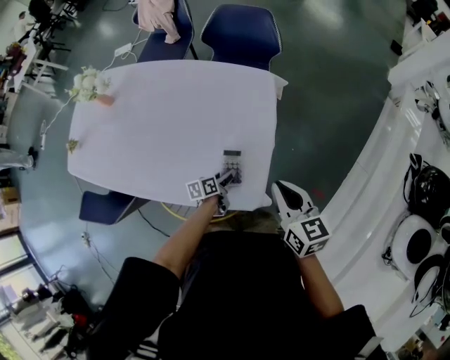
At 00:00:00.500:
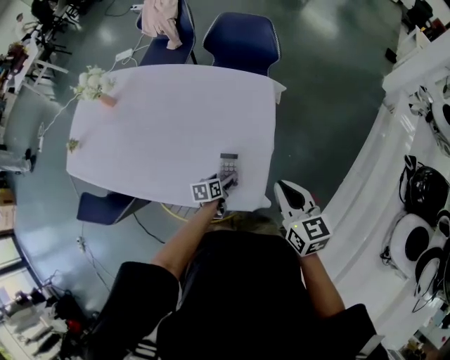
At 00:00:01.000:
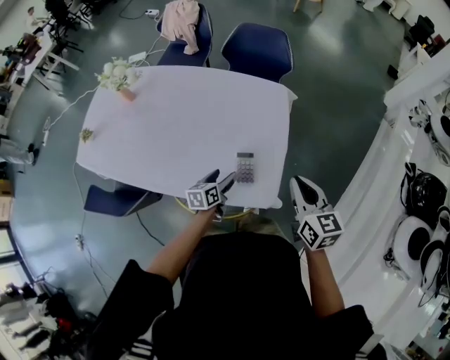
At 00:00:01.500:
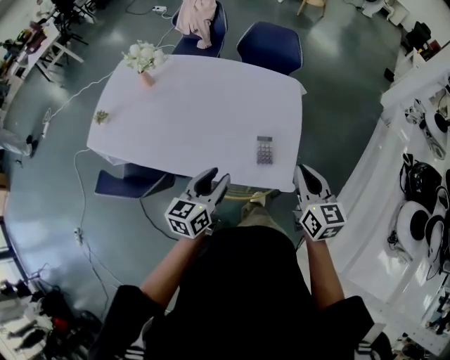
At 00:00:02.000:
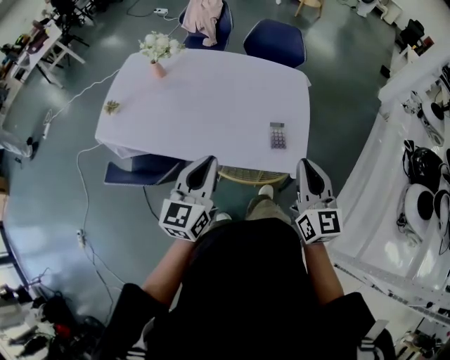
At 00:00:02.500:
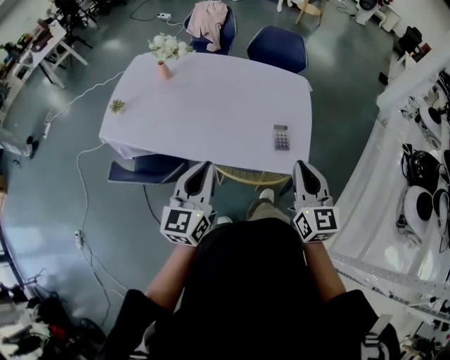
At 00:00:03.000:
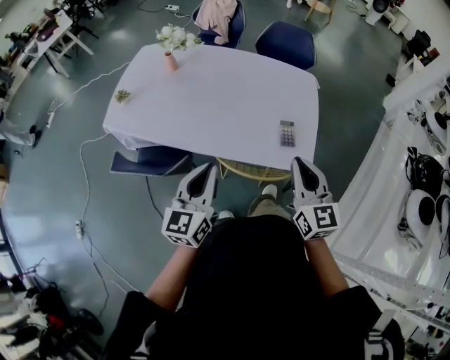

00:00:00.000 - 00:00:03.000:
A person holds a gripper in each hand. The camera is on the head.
00:00:00.000 - 00:00:01.500: The right gripper shifts approximately 15 cm to the left, backward and upward. The left gripper shifts about 40 cm upward, to the left and backward, rotates roughly 40 degrees, and opens, then closes again.
00:00:01.500 - 00:00:03.000: The left gripper is displaced to the left, backward and upward by approximately 20 cm, and closes. The right gripper travels to the left and backward by roughly 15 cm.

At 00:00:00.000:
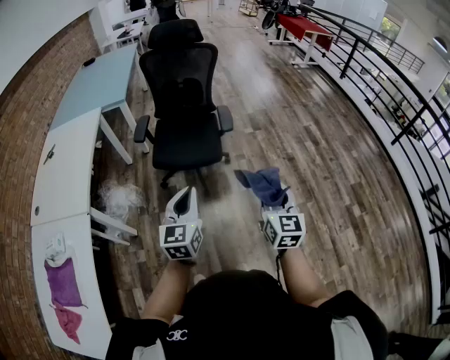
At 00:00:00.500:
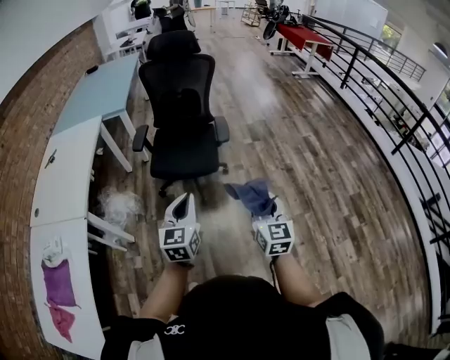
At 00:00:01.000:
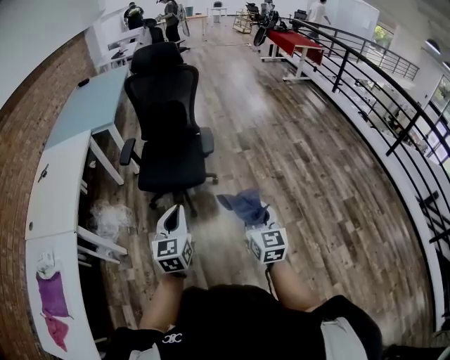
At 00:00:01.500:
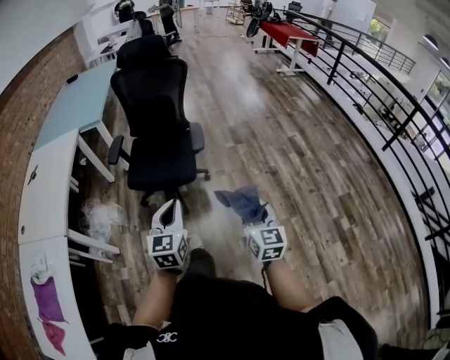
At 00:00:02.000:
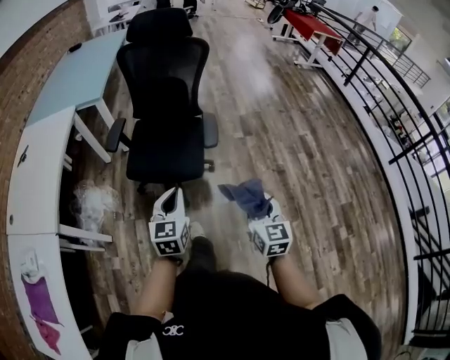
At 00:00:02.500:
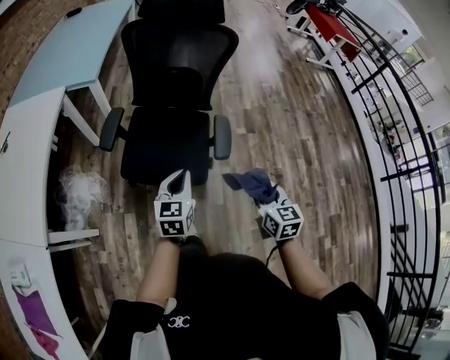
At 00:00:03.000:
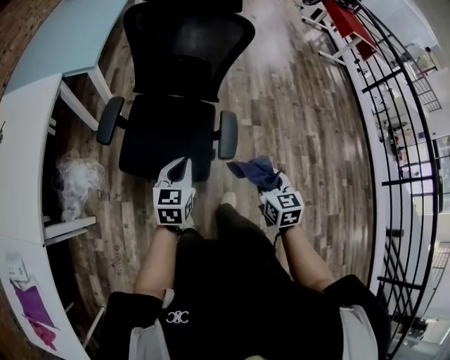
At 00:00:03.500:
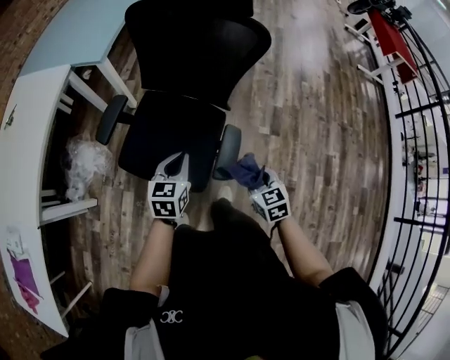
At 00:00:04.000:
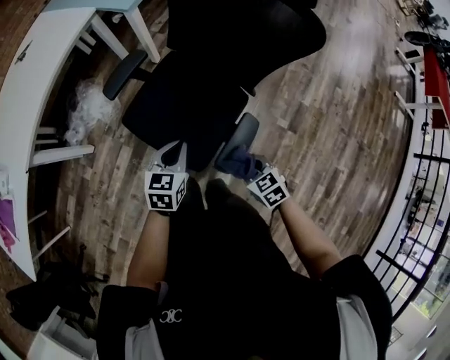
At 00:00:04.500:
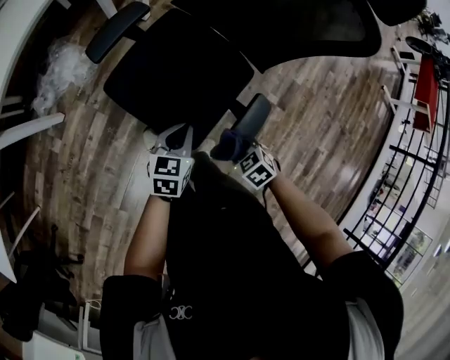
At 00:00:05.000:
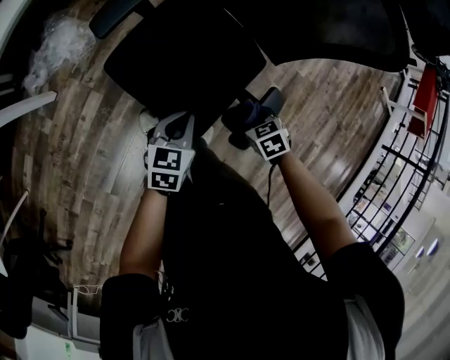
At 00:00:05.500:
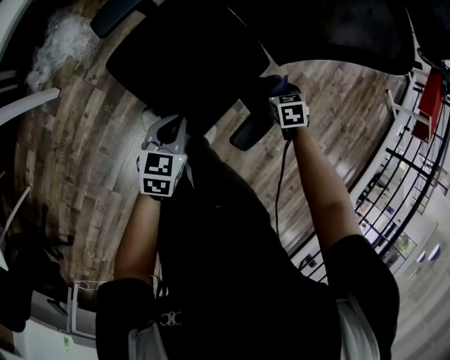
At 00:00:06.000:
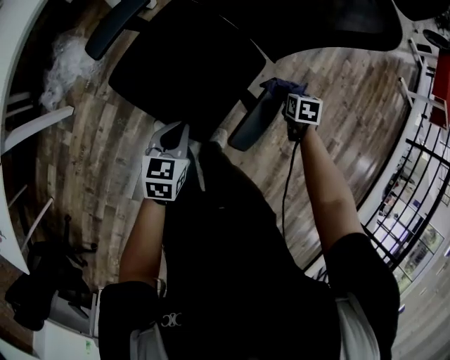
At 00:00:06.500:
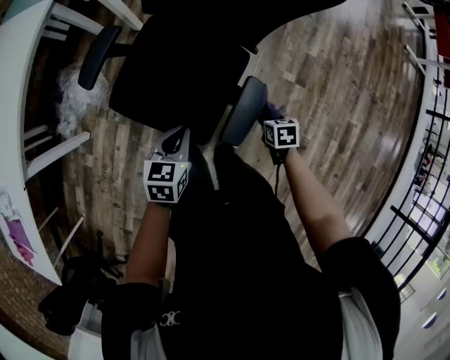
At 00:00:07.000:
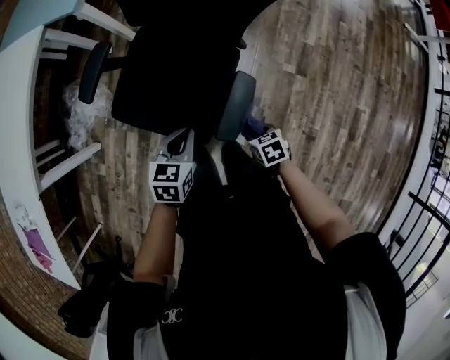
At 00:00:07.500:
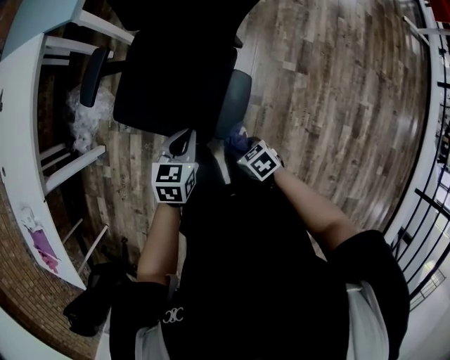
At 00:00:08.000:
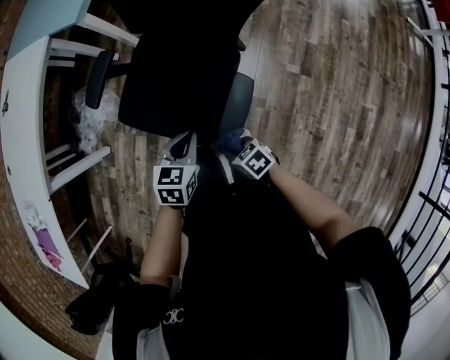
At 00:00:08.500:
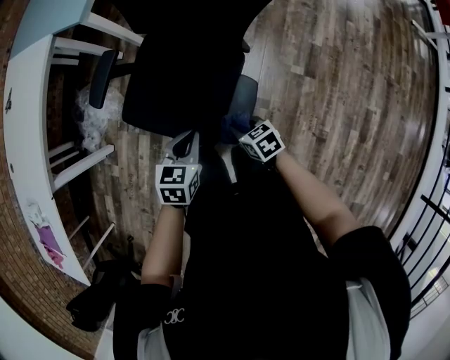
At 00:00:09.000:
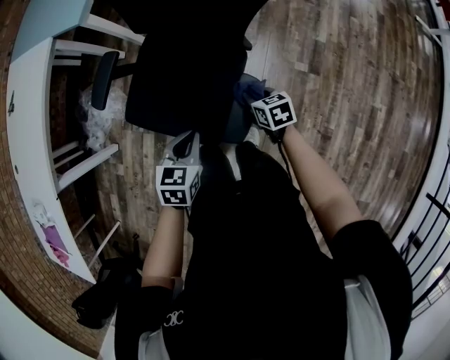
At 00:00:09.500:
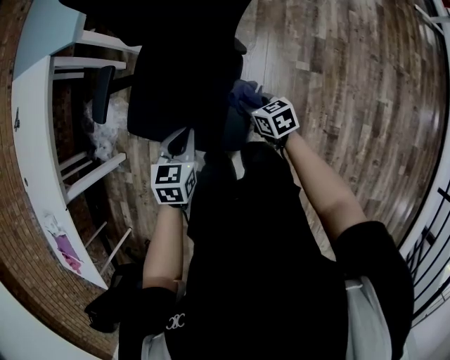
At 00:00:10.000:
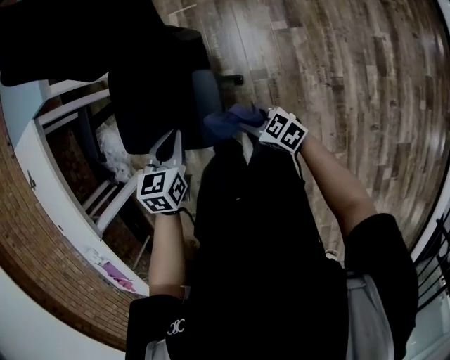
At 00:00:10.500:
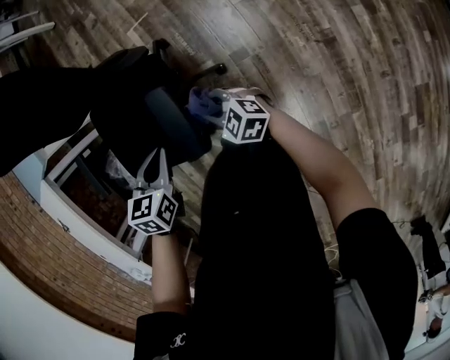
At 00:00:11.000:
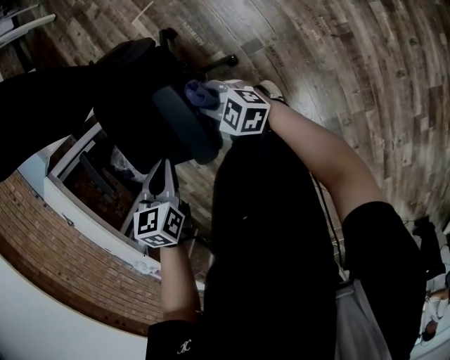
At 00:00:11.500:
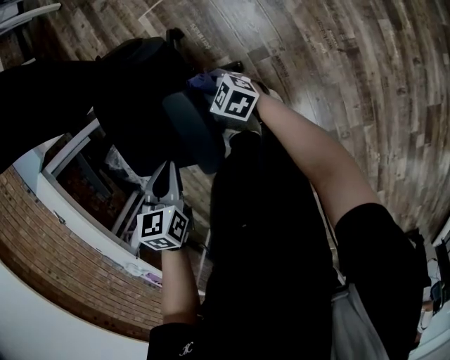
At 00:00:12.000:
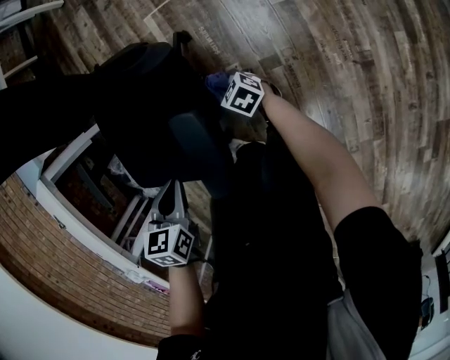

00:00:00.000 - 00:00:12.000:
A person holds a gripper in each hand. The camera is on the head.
00:00:00.000 - 00:00:02.000: The grippers both shift forward and downward by some 20 cm.
00:00:02.000 - 00:00:04.000: The left gripper changes place by roughly 40 cm, and rotates about 30 degrees. The right gripper changes place by about 50 cm, and angles its fingers downward, by about 40 degrees.
00:00:04.000 - 00:00:06.000: The right gripper ends up roughly 25 cm from where it was, and rotates about 40 degrees, while the left gripper goes about 10 cm downward.
00:00:06.000 - 00:00:08.000: The right gripper ends up roughly 30 cm from where it was, and swivels roughly 40 degrees. Meanwhile the left gripper moves approximately 15 cm.
00:00:08.000 - 00:00:10.000: The left gripper goes approximately 5 cm to the right. The right gripper shifts approximately 10 cm to the right, goes forward and returns, roughly 15 cm each way, and turns by approximately 20 degrees.
00:00:10.000 - 00:00:12.000: The right gripper shifts roughly 30 cm downward and forward. The left gripper shifts roughly 10 cm downward.

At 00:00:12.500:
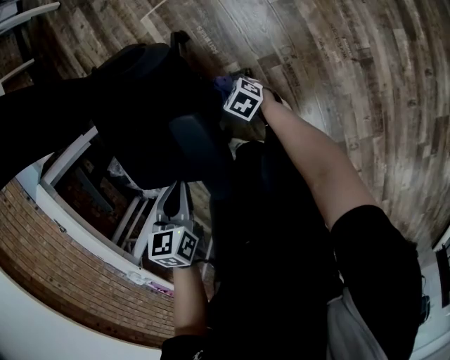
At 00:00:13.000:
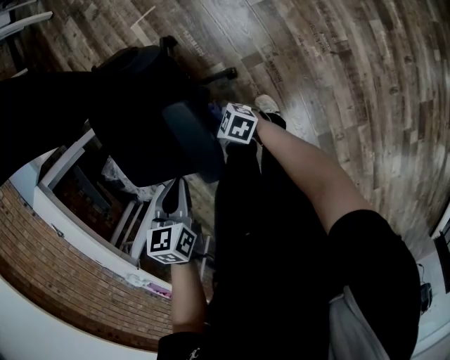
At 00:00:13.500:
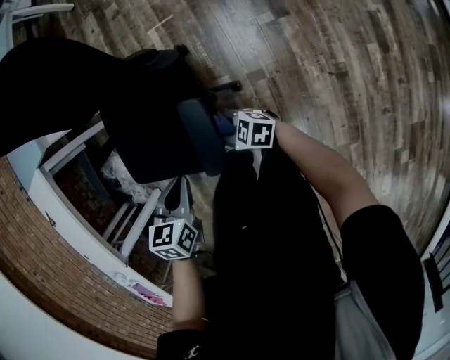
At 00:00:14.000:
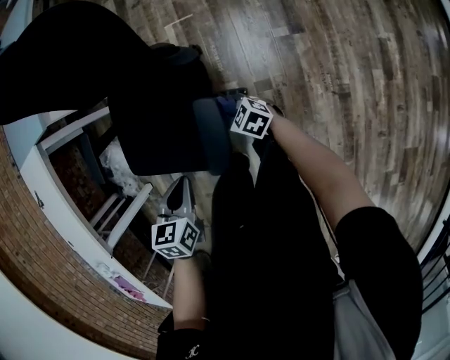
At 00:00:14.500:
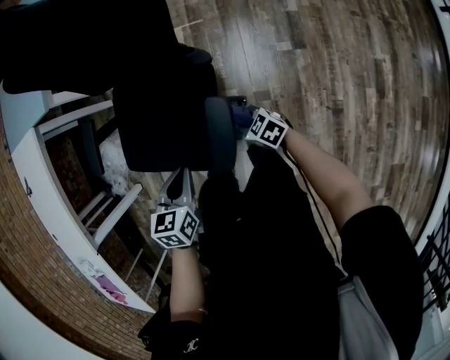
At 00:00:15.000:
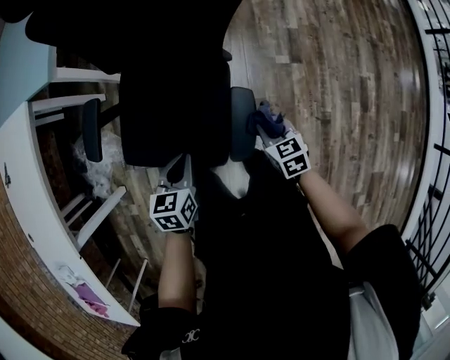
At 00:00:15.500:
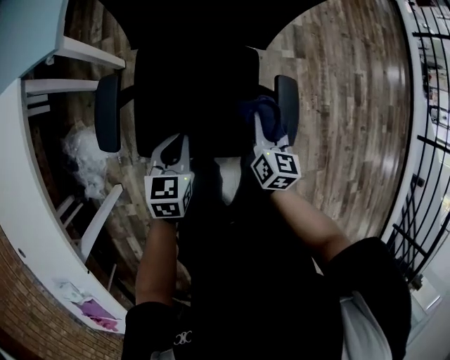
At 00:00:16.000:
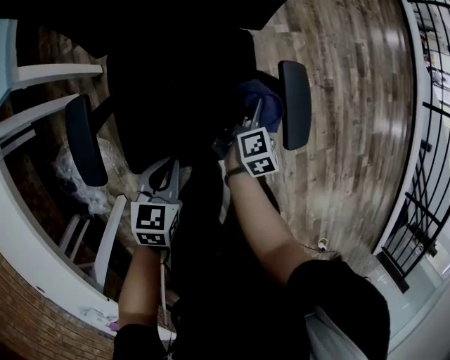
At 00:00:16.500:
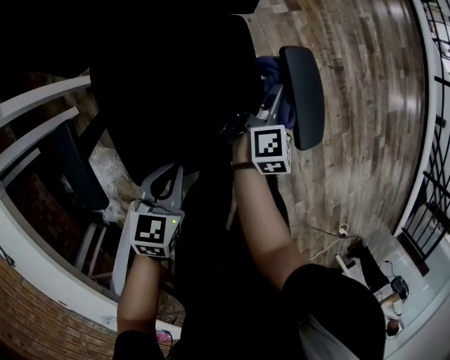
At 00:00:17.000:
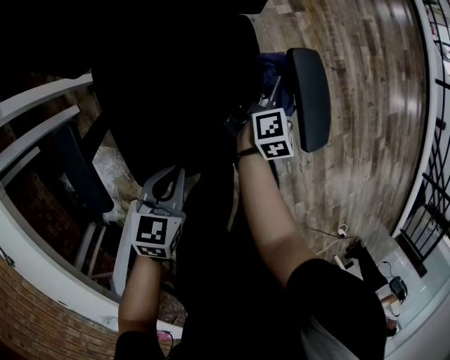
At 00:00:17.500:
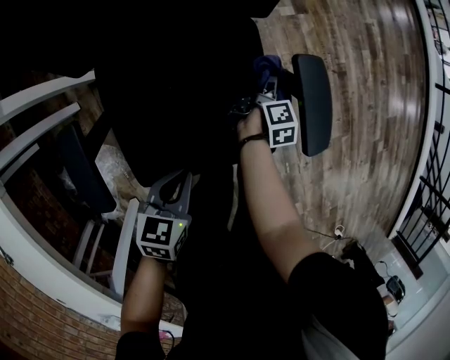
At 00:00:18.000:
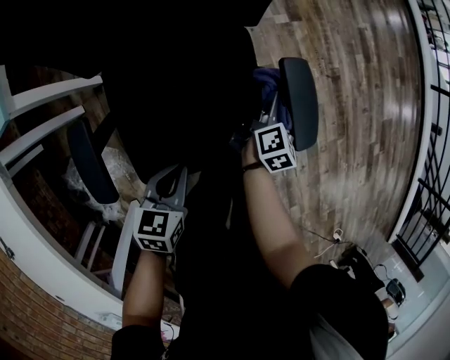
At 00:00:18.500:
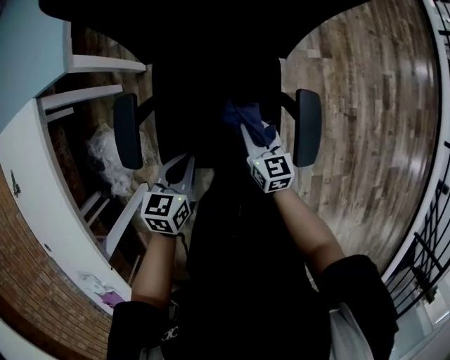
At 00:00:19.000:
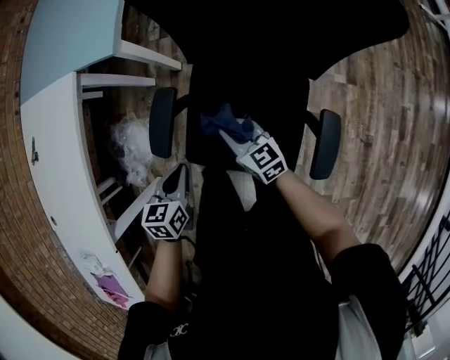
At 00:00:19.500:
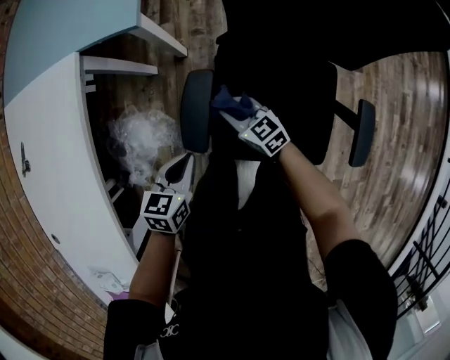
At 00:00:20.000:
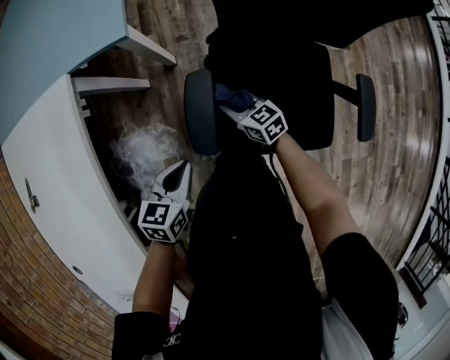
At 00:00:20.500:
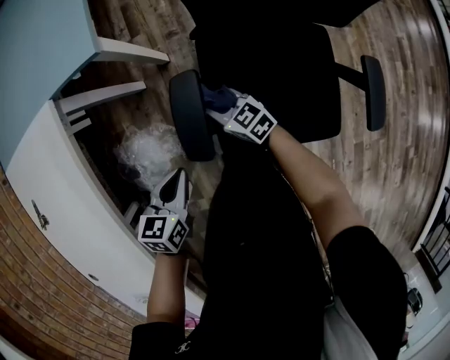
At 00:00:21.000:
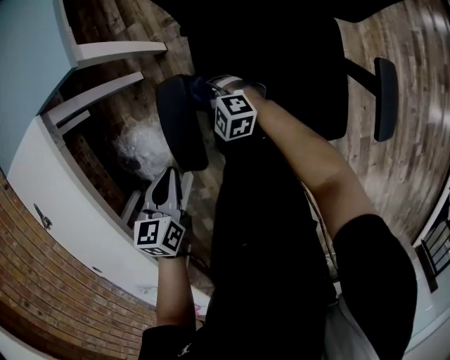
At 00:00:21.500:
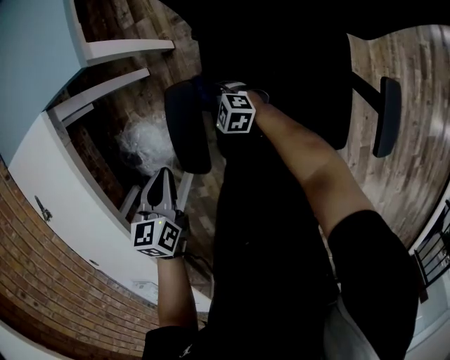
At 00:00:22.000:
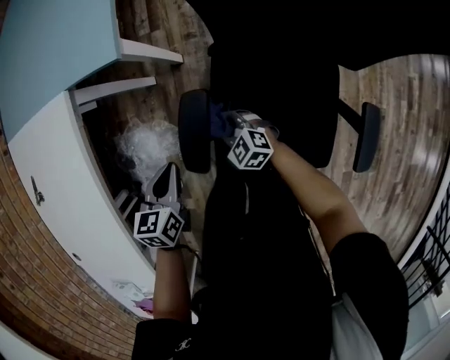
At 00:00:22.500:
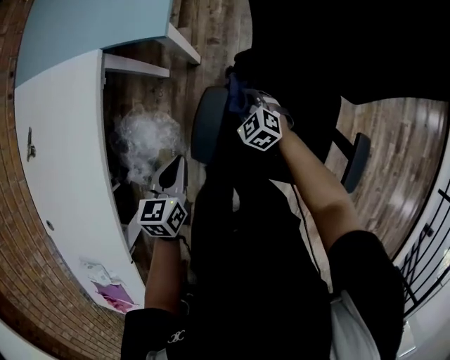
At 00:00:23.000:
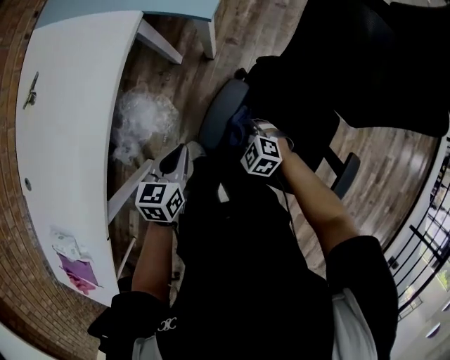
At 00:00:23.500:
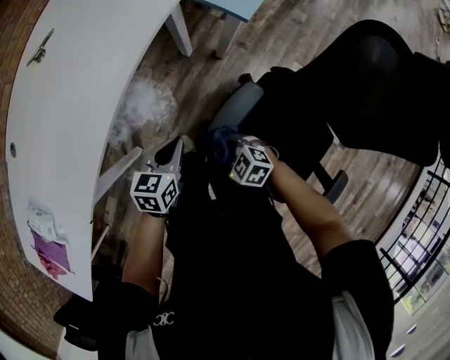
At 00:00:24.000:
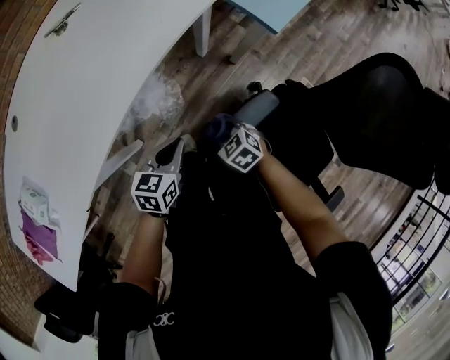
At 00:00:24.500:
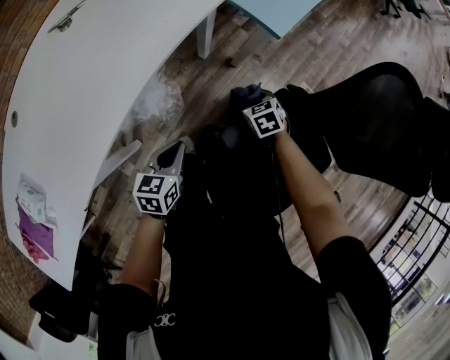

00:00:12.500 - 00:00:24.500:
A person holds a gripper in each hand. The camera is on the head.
00:00:12.500 - 00:00:14.500: The right gripper heads upward, covering about 20 cm. The left gripper goes some 10 cm upward.
00:00:14.500 - 00:00:16.500: The right gripper goes upward and returns, some 15 cm each way, and rotates roughly 140 degrees, while the left gripper changes place by roughly 25 cm, and turns by roughly 40 degrees.
00:00:16.500 - 00:00:18.500: The right gripper shifts by roughly 20 cm, and swivels some 80 degrees. Meanwhile the left gripper heads upward, covering approximately 10 cm, and swivels about 20 degrees.
00:00:18.500 - 00:00:20.500: The left gripper changes place by roughly 30 cm; the right gripper shifts by about 35 cm, and swivels roughly 30 degrees.
00:00:20.500 - 00:00:22.500: The left gripper goes approximately 5 cm upward, and rotates some 20 degrees, while the right gripper heads forward and to the right, covering roughly 10 cm, travels downward and back again, some 10 cm each way, and rotates about 40 degrees.
00:00:22.500 - 00:00:24.500: The left gripper changes place by some 15 cm, and turns by roughly 20 degrees.
